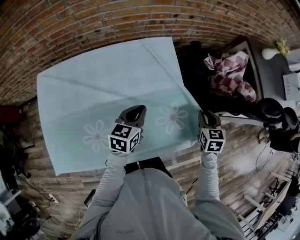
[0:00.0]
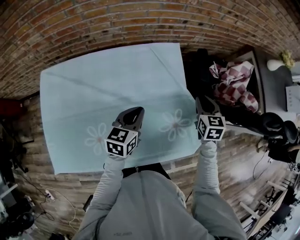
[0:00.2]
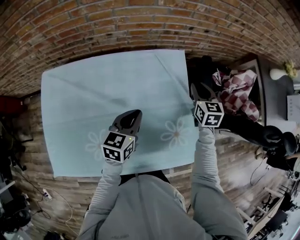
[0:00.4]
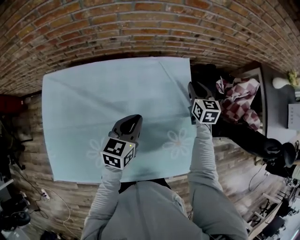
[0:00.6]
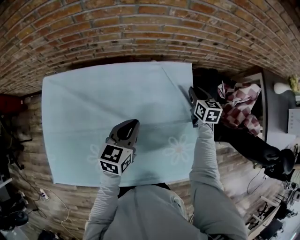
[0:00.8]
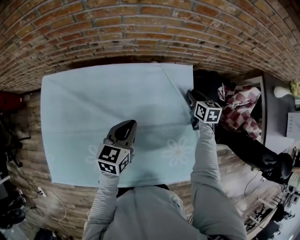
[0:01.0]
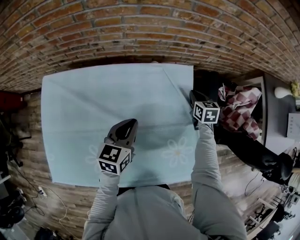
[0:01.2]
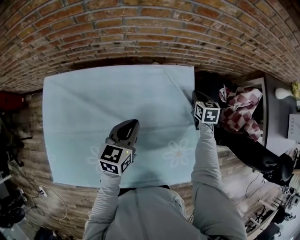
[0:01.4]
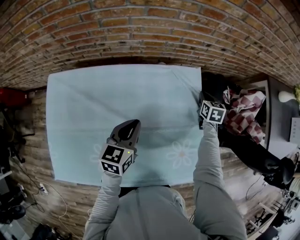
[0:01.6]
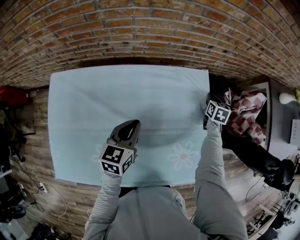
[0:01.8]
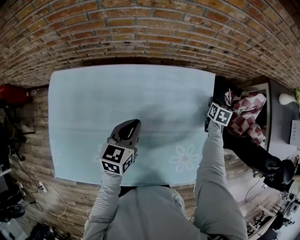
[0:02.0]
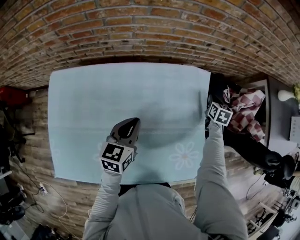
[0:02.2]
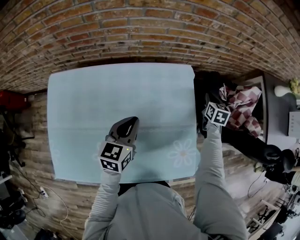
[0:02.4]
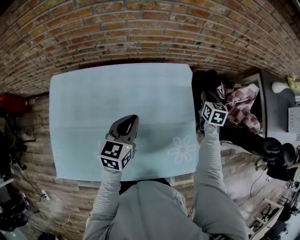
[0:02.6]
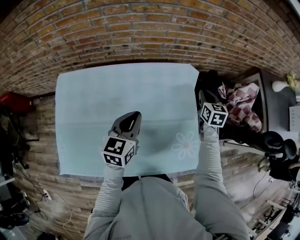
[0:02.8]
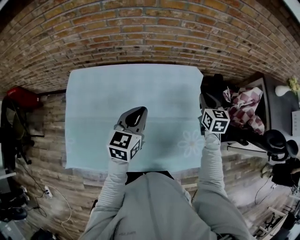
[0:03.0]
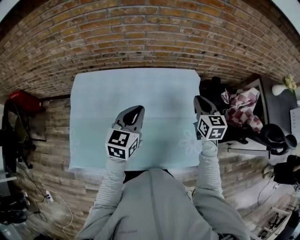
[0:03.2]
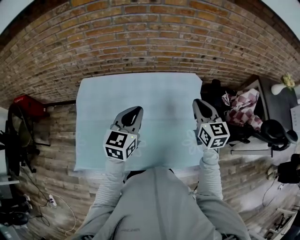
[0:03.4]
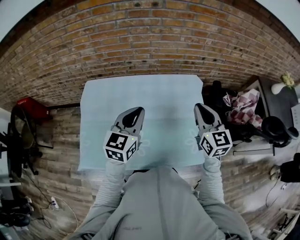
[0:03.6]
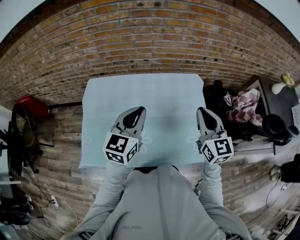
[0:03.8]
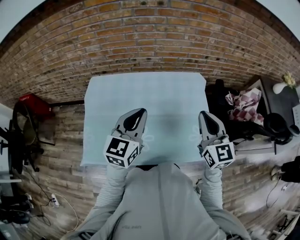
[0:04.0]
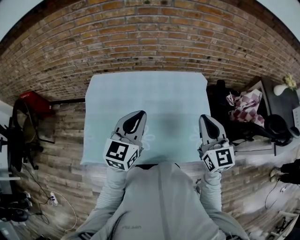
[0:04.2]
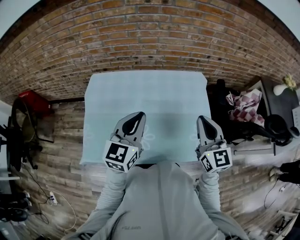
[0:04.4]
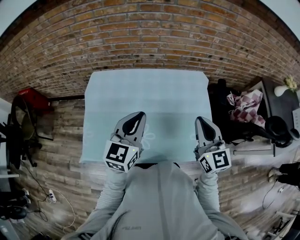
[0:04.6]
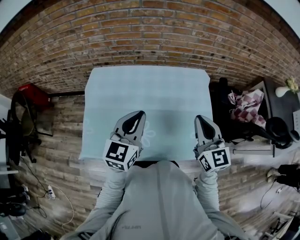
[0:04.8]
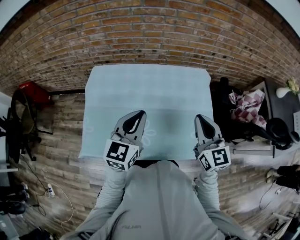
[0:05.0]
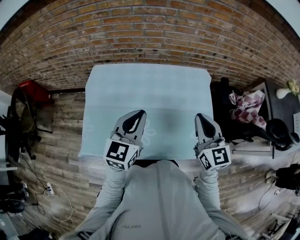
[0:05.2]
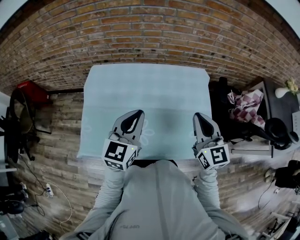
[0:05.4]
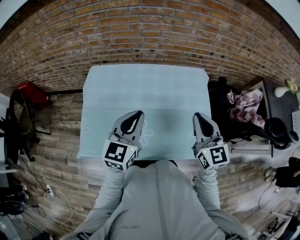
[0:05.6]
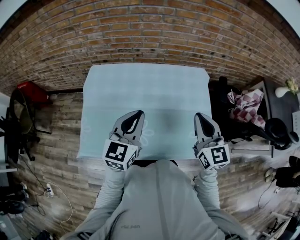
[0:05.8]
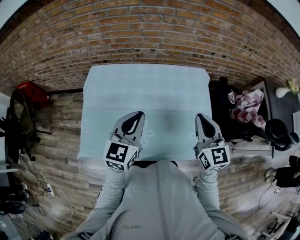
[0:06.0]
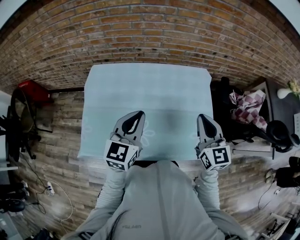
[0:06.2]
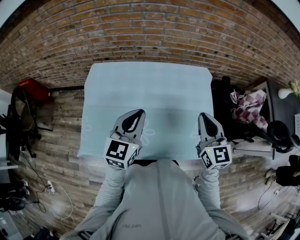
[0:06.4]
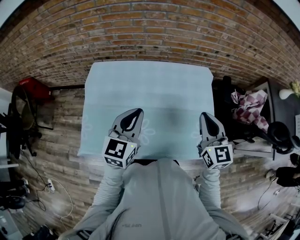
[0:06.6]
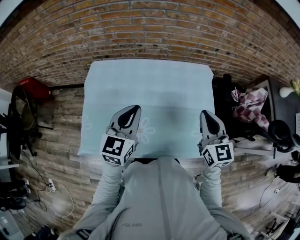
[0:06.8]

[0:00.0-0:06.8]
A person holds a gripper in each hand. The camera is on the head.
0:00.0 to 0:01.4: The right gripper travels forward and to the left by about 30 cm. Meanwhile the left gripper heads to the left and forward, covering some 10 cm.
0:01.4 to 0:02.8: The left gripper goes approximately 5 cm upward. Meanwhile the right gripper moves upward and backward, about 10 cm.
0:02.8 to 0:04.0: The right gripper is displaced backward, upward and to the left by roughly 35 cm, and swivels some 30 degrees; the left gripper travels upward, backward and to the left by some 20 cm.
0:04.0 to 0:06.8: The grippers make only small movements.

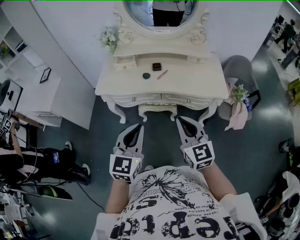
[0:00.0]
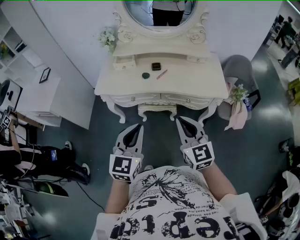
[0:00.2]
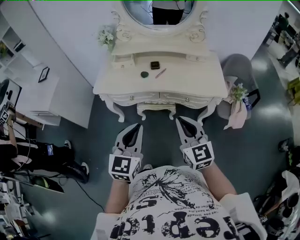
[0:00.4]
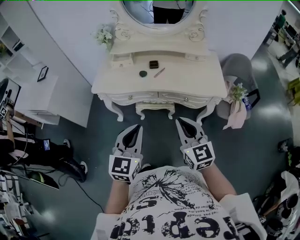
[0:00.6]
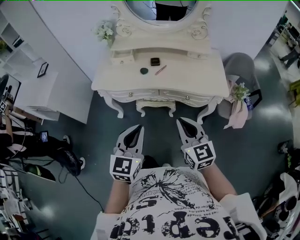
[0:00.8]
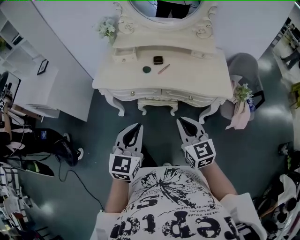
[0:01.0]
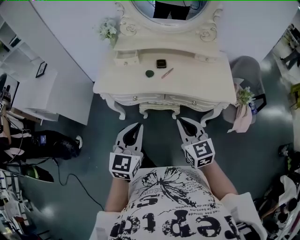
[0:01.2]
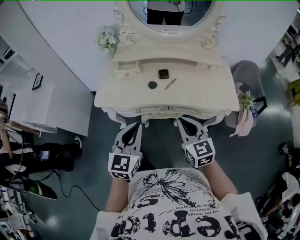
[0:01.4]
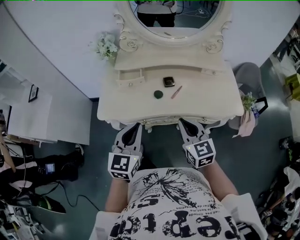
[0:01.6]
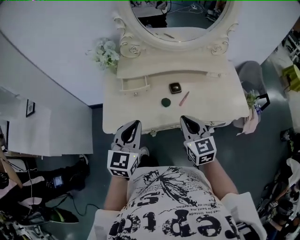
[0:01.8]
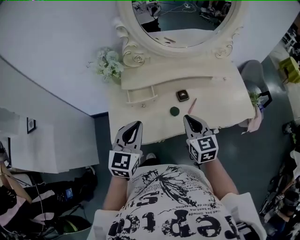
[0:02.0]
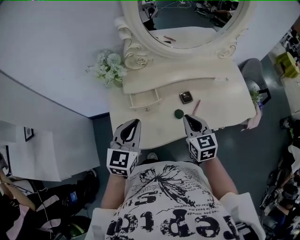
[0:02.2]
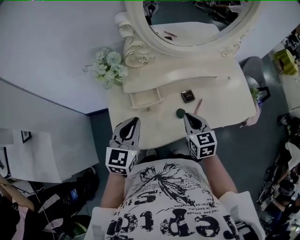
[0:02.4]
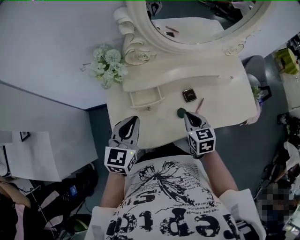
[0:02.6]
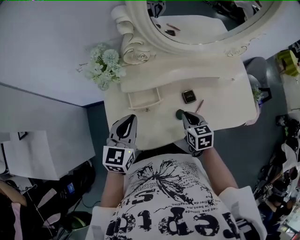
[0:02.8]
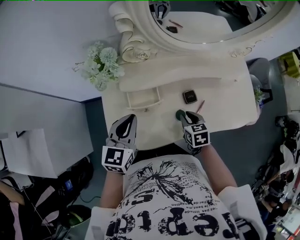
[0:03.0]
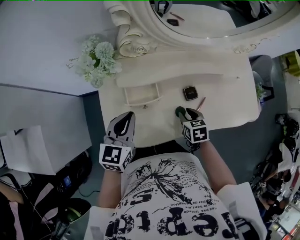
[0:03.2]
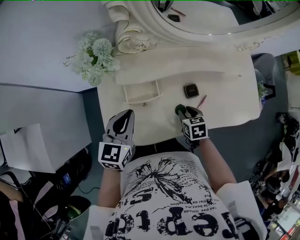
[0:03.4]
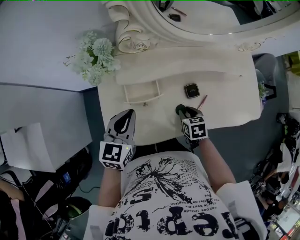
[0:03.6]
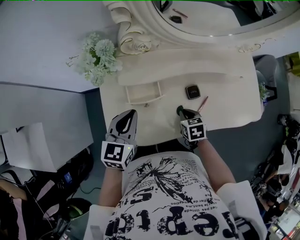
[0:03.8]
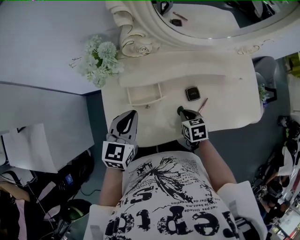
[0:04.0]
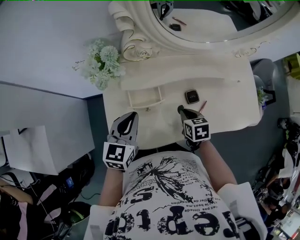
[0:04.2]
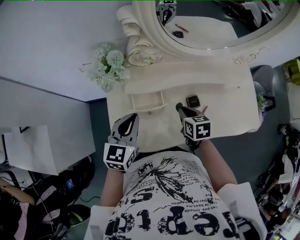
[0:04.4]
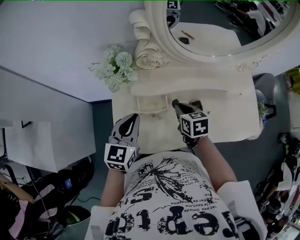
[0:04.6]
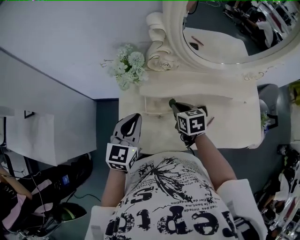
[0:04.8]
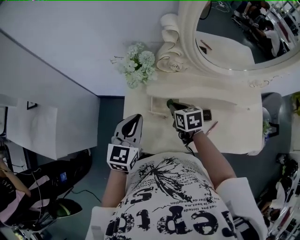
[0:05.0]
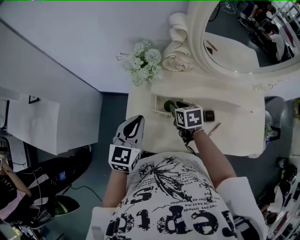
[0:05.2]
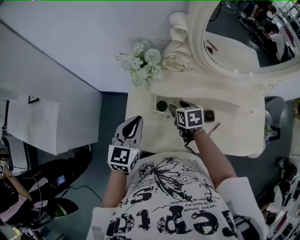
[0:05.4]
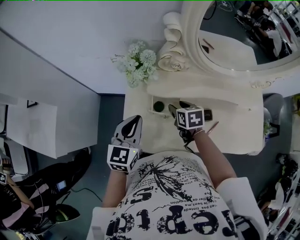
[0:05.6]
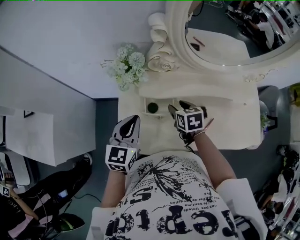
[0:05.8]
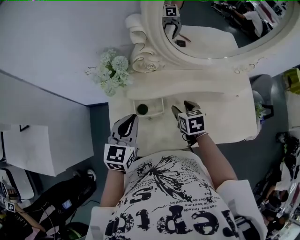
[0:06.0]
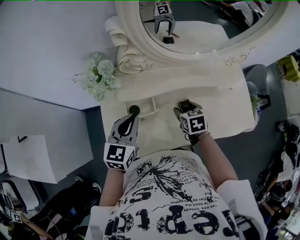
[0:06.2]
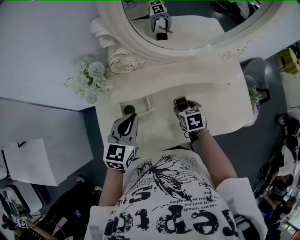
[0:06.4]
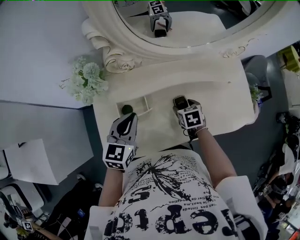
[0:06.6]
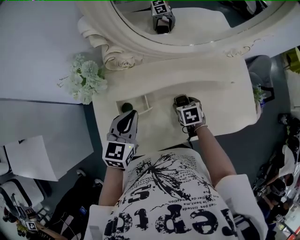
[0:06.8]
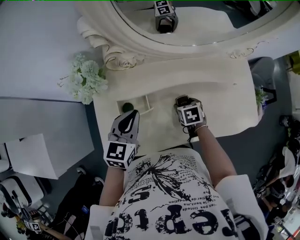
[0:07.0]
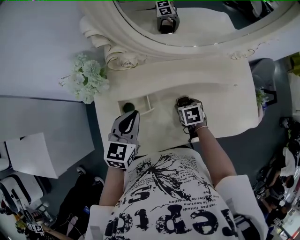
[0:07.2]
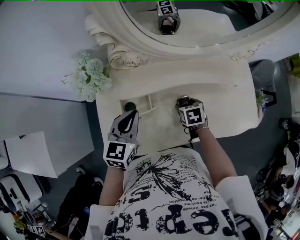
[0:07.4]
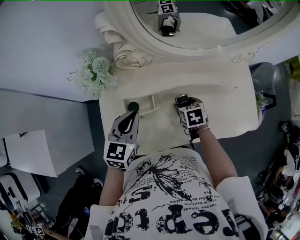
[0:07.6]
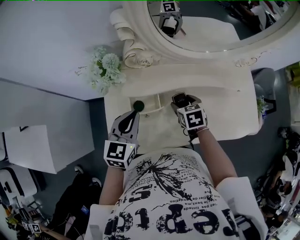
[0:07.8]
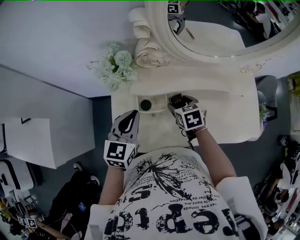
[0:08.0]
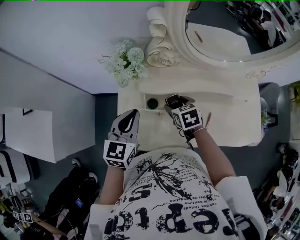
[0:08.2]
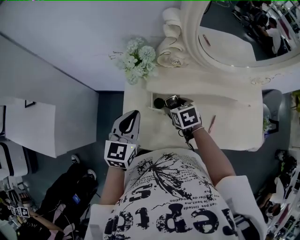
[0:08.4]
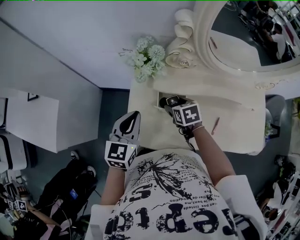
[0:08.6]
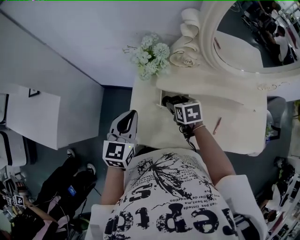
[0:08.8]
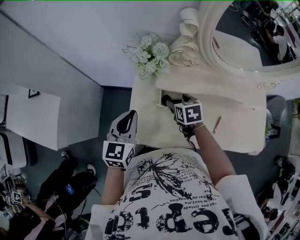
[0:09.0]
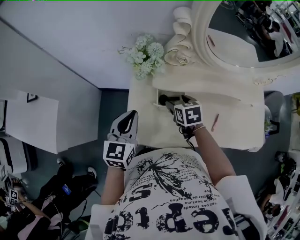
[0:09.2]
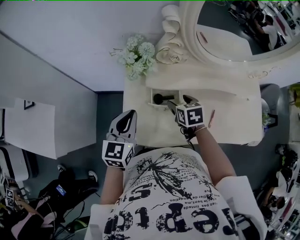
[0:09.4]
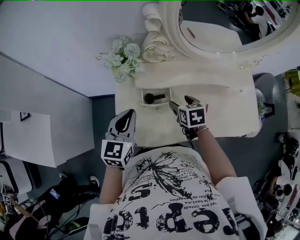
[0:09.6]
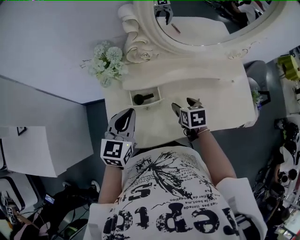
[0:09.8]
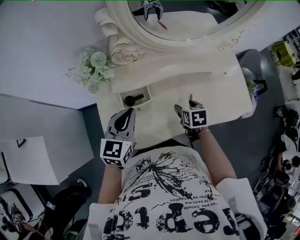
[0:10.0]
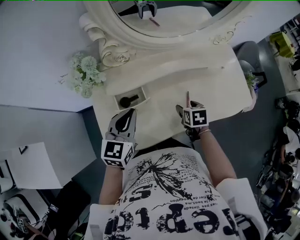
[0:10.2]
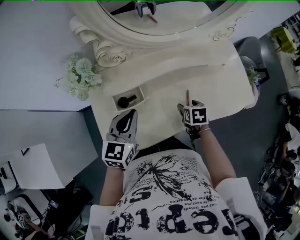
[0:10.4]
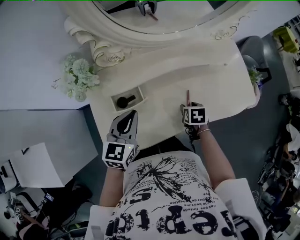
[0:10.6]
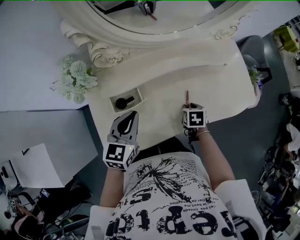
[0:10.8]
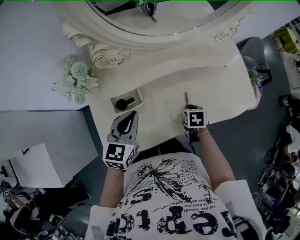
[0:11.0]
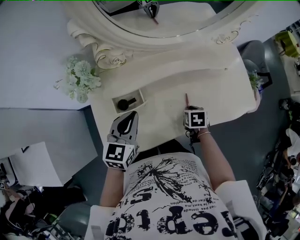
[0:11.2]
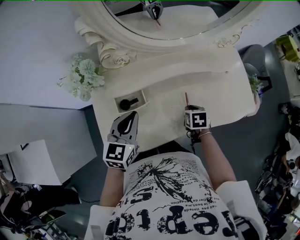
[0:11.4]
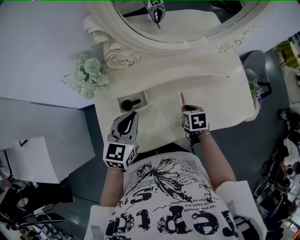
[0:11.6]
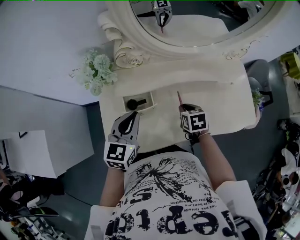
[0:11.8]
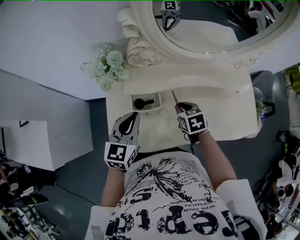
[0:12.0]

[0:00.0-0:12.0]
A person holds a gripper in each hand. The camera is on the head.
0:00.0 to 0:01.6: The two grippers go approximately 25 cm forward and to the left.
0:01.6 to 0:03.0: The right gripper shifts approximately 25 cm forward, downward and to the left, and points its fingers approximately 30 degrees further downward, while the left gripper goes approximately 25 cm forward and to the left.
0:03.0 to 0:04.4: The right gripper goes roughly 5 cm forward.
0:04.4 to 0:06.0: The right gripper goes to the left and returns, about 10 cm each way, and opens up.
0:06.0 to 0:07.6: The left gripper goes roughly 5 cm to the right. Meanwhile the right gripper goes about 10 cm to the right and downward.
0:07.6 to 0:09.0: The two grippers go about 20 cm to the left.
0:09.0 to 0:10.4: The right gripper changes place by some 30 cm, and changes its angle by roughly 40 degrees, while the left gripper ends up some 20 cm from where it was, and turns by some 30 degrees.
0:10.4 to 0:12.0: The right gripper heads to the left and upward, covering about 15 cm, rotates approximately 30 degrees, and closes up. Meanwhile the left gripper moves to the left, approximately 5 cm.

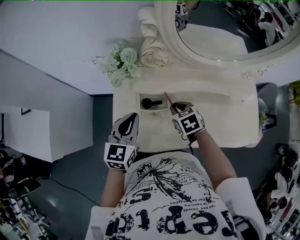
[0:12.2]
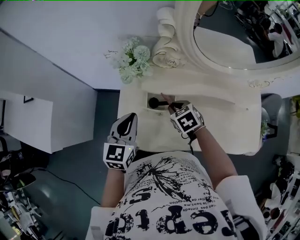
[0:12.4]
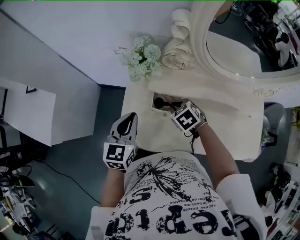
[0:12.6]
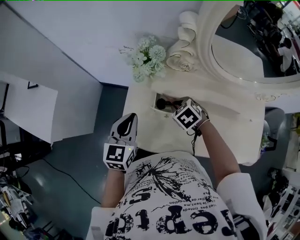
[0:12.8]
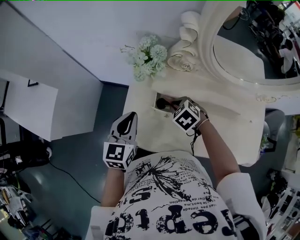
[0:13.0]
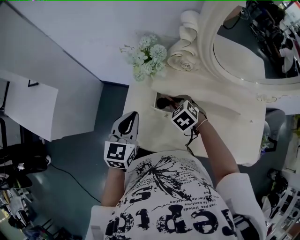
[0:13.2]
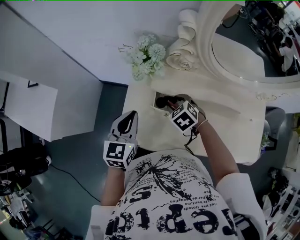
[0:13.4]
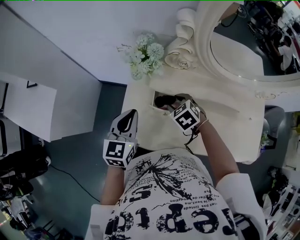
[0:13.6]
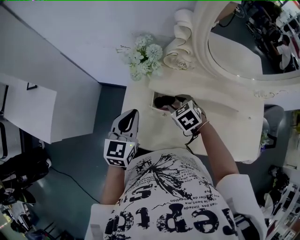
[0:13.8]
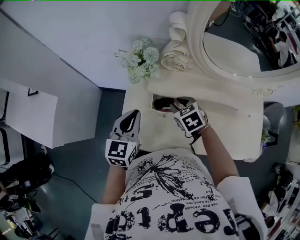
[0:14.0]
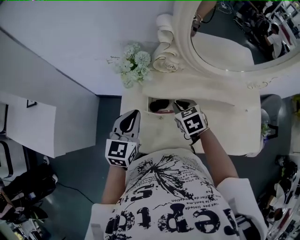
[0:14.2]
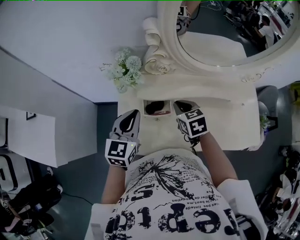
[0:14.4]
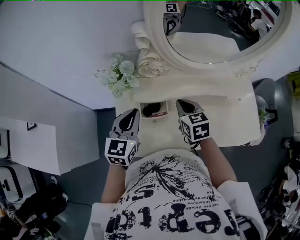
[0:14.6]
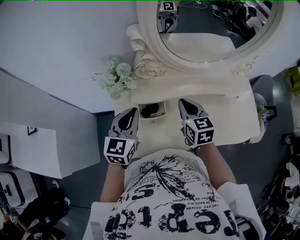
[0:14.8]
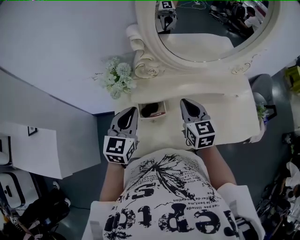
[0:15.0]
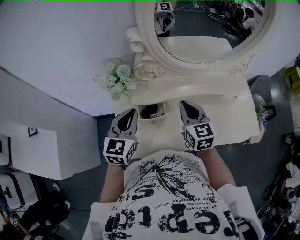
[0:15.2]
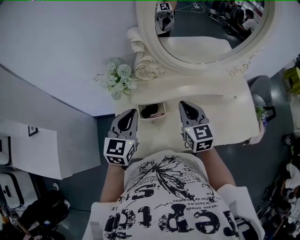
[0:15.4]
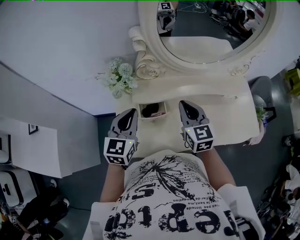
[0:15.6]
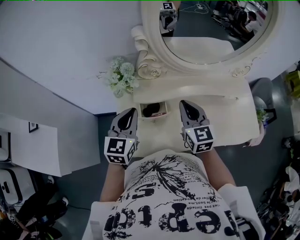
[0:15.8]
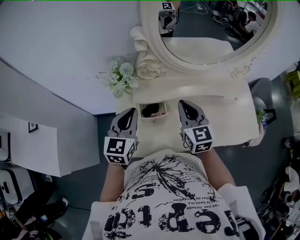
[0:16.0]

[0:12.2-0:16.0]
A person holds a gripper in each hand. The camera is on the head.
0:12.2 to 0:13.4: Both grippers move to the left, approximately 5 cm. The right gripper changes its angle by approximately 30 degrees, and opens up.
0:13.4 to 0:14.8: The left gripper goes about 10 cm to the right and upward, and changes its angle by some 20 degrees; the right gripper goes some 15 cm upward and to the right, tips its fingers upward by some 30 degrees, and closes.
0:14.8 to 0:16.0: The grippers stay close to where they were, moving slightly.

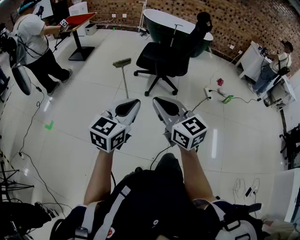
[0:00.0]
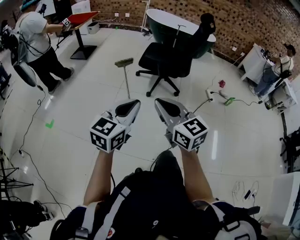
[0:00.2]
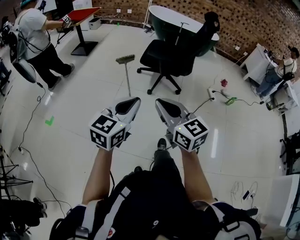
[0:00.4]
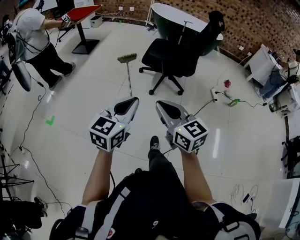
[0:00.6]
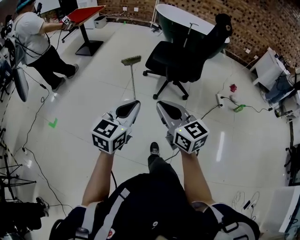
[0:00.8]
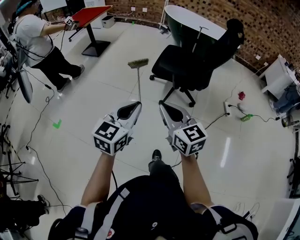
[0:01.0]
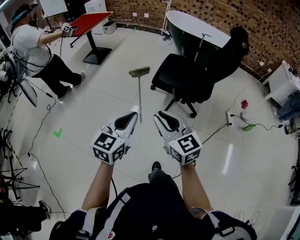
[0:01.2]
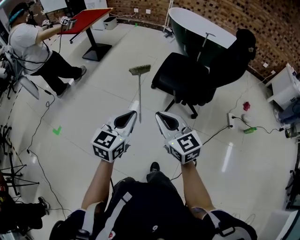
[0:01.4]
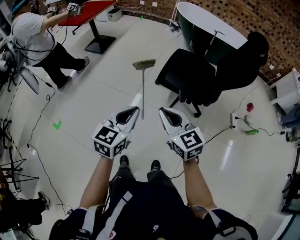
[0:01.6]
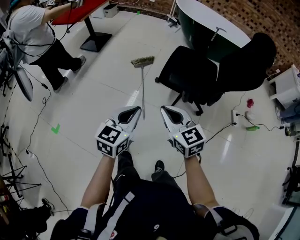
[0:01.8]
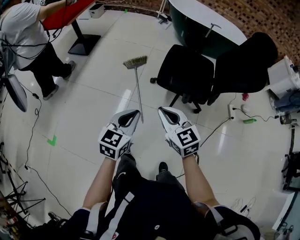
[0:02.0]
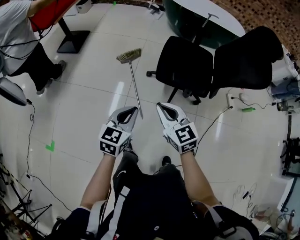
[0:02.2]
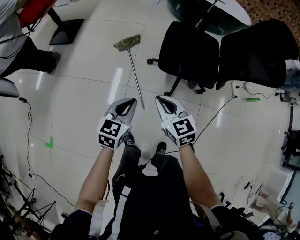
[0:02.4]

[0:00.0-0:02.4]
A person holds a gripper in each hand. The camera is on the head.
0:00.0 to 0:01.2: The two grippers go about 25 cm forward.
0:01.2 to 0:02.4: Both grippers move forward, downward and to the left, some 35 cm. The right gripper changes its angle by some 20 degrees.
